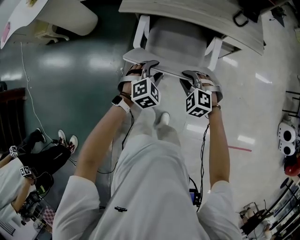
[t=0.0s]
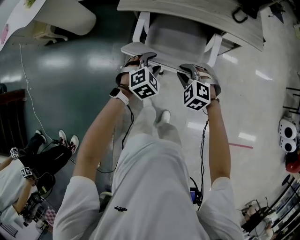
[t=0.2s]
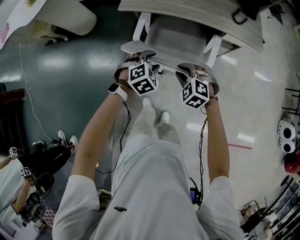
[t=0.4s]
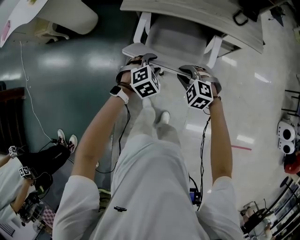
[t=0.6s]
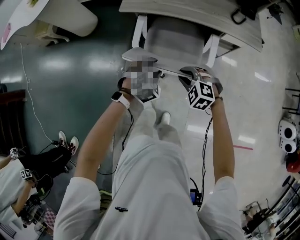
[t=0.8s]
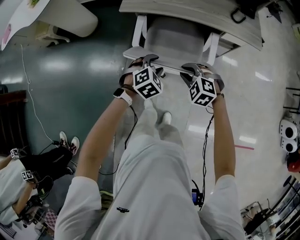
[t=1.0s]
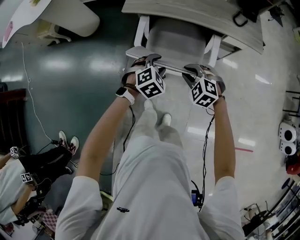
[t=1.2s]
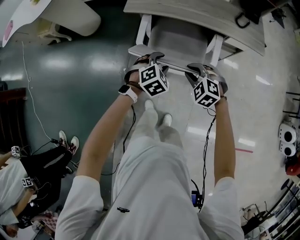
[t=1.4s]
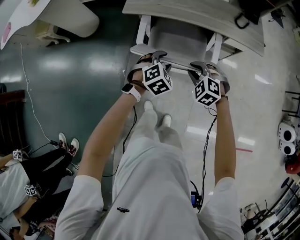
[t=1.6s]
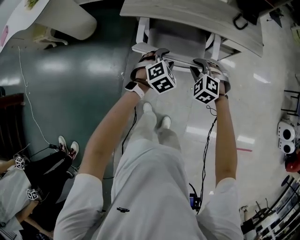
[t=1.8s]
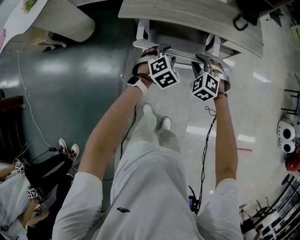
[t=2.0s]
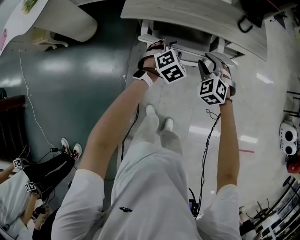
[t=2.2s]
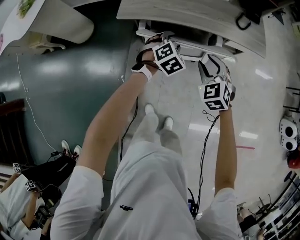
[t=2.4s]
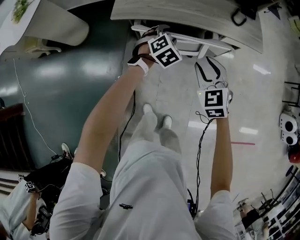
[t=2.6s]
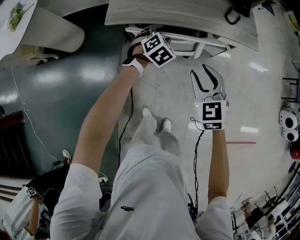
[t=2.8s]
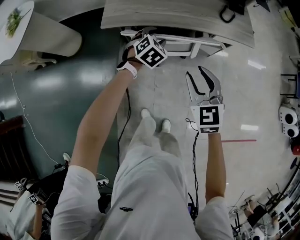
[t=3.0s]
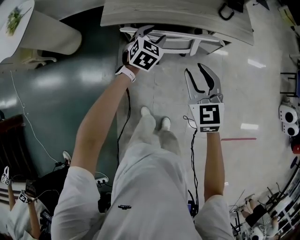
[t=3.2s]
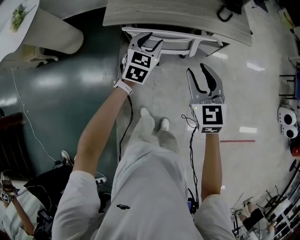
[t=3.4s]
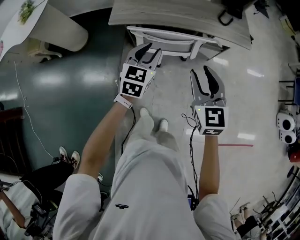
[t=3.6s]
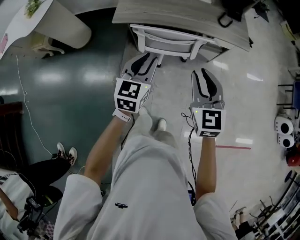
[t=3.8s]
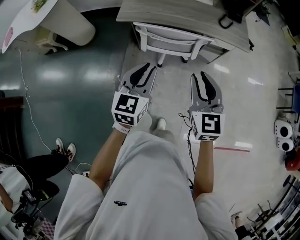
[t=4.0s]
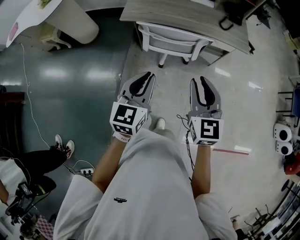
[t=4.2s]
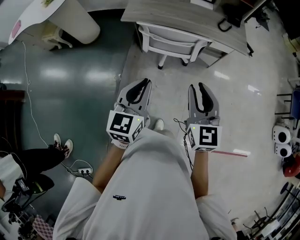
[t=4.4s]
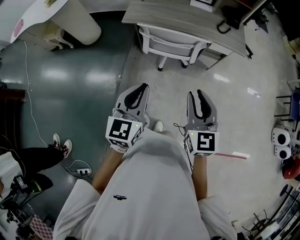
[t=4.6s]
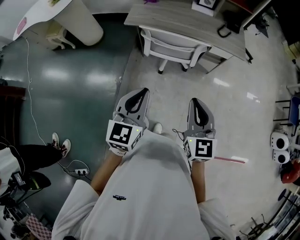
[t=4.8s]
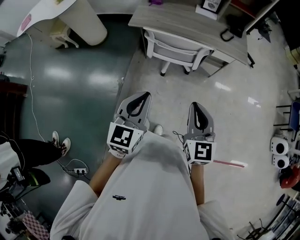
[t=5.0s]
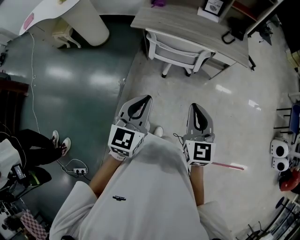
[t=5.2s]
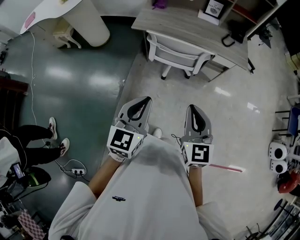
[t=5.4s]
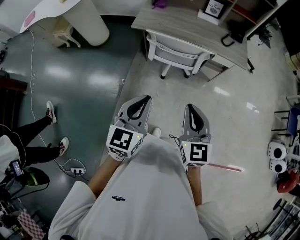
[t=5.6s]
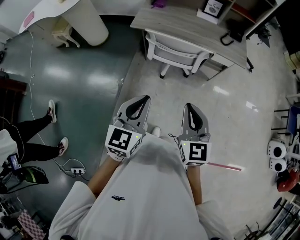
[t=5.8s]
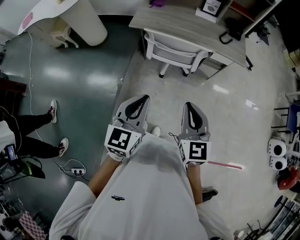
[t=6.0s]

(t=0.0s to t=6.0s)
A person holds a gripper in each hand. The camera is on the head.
t=0.0s - t=1.6s: The grippers make only small movements.
t=1.6s - t=3.0s: The left gripper moves forward, some 20 cm. Meanwhile the right gripper is displaced upward by roughly 15 cm, and turns by about 50 degrees.
t=3.0s - t=4.4s: The left gripper shifts roughly 40 cm backward and upward, tilts its fingers some 30 degrees upward, and closes up. The right gripper travels backward and upward by about 20 cm.
t=4.4s - t=6.0s: The two grippers go about 5 cm backward. The right gripper closes its fingers.

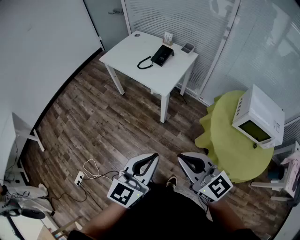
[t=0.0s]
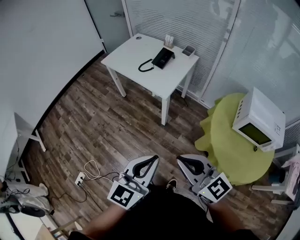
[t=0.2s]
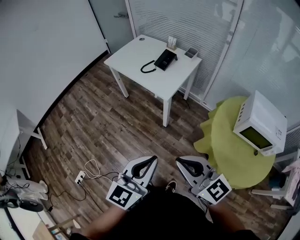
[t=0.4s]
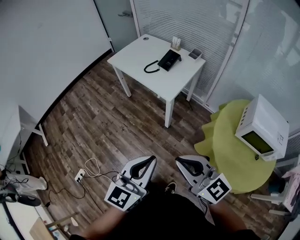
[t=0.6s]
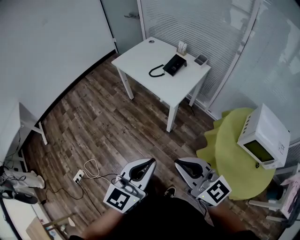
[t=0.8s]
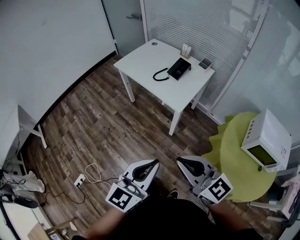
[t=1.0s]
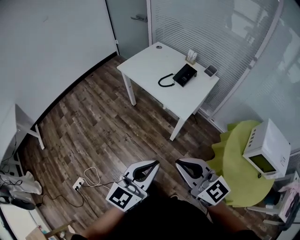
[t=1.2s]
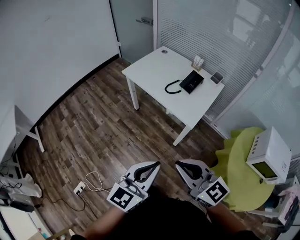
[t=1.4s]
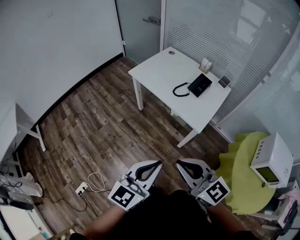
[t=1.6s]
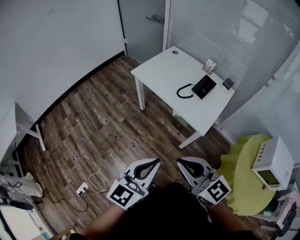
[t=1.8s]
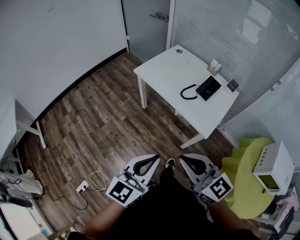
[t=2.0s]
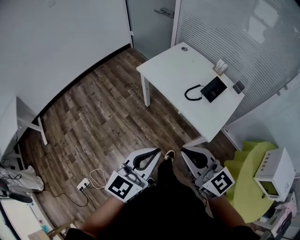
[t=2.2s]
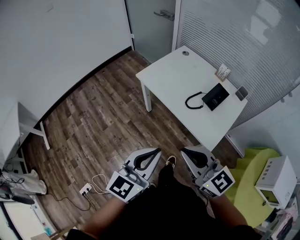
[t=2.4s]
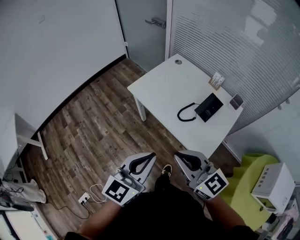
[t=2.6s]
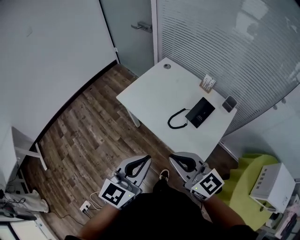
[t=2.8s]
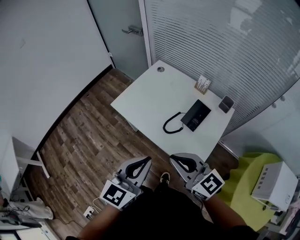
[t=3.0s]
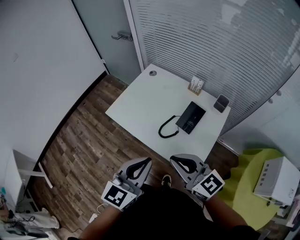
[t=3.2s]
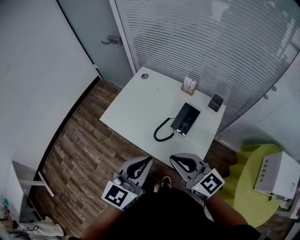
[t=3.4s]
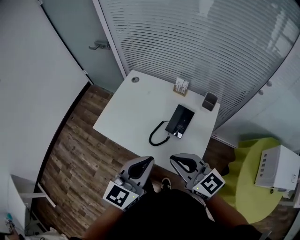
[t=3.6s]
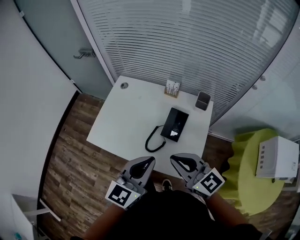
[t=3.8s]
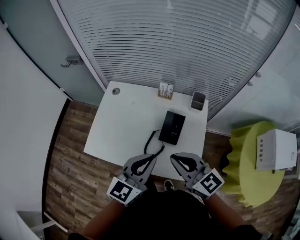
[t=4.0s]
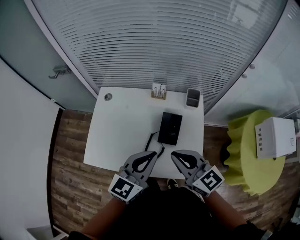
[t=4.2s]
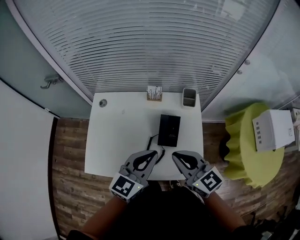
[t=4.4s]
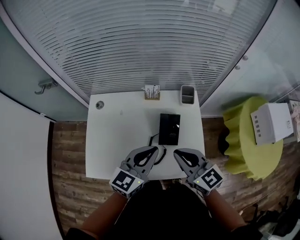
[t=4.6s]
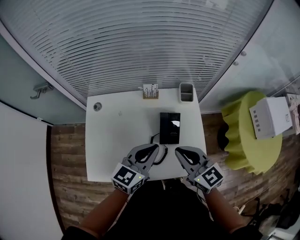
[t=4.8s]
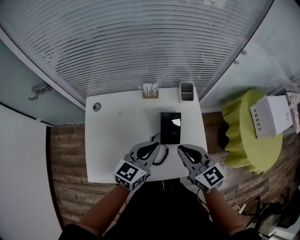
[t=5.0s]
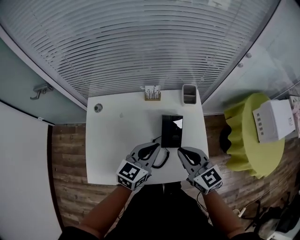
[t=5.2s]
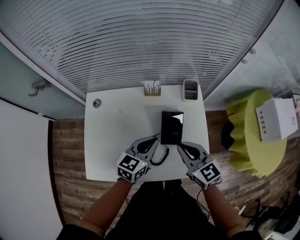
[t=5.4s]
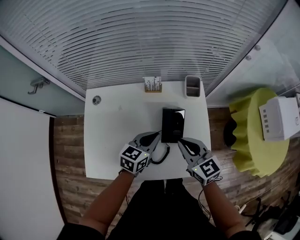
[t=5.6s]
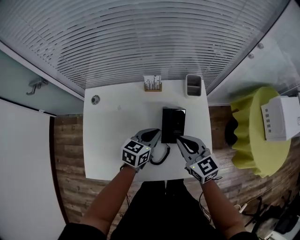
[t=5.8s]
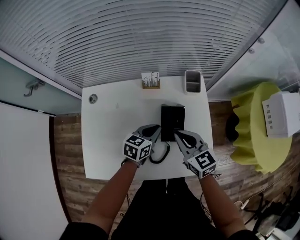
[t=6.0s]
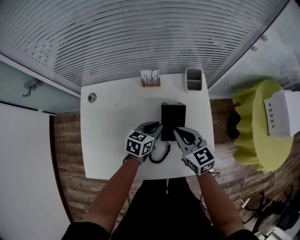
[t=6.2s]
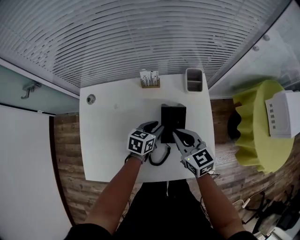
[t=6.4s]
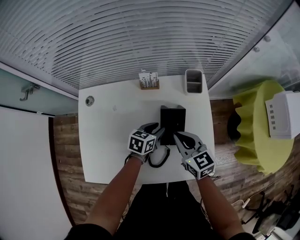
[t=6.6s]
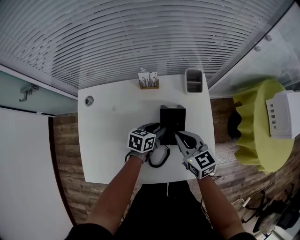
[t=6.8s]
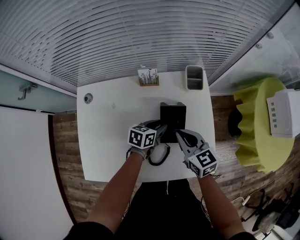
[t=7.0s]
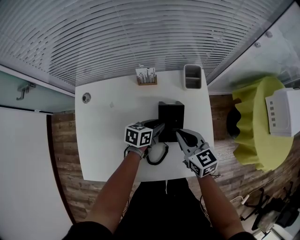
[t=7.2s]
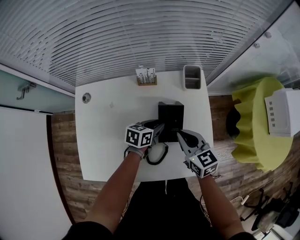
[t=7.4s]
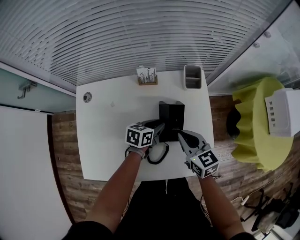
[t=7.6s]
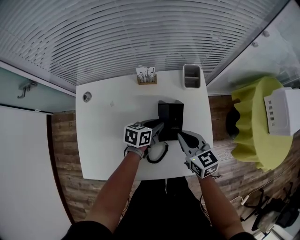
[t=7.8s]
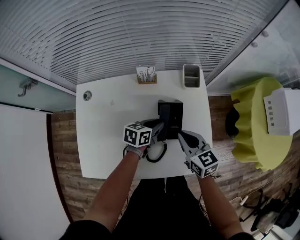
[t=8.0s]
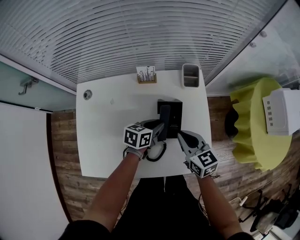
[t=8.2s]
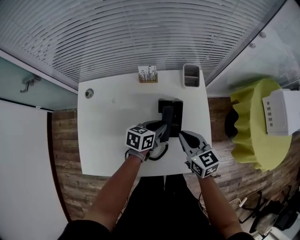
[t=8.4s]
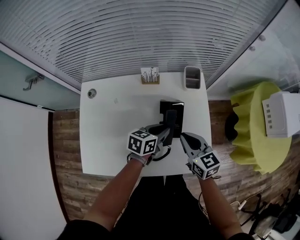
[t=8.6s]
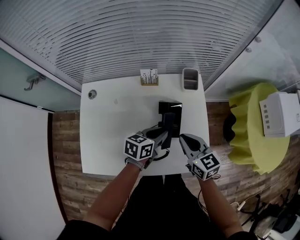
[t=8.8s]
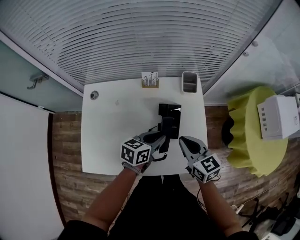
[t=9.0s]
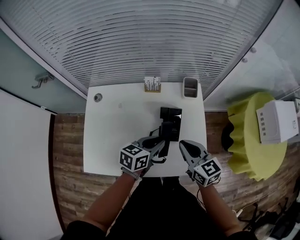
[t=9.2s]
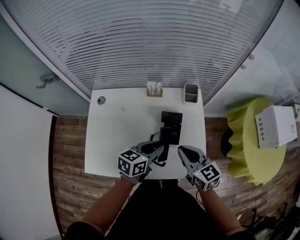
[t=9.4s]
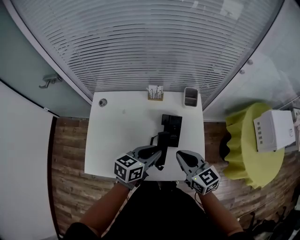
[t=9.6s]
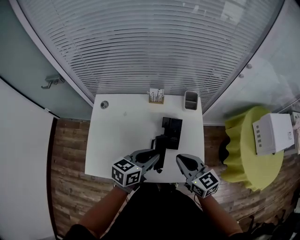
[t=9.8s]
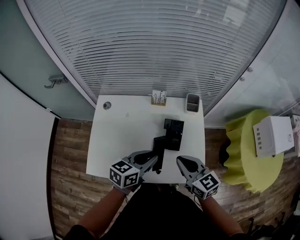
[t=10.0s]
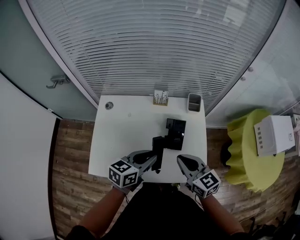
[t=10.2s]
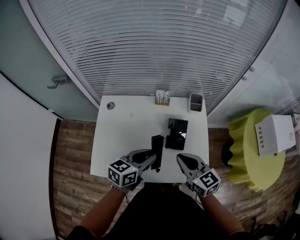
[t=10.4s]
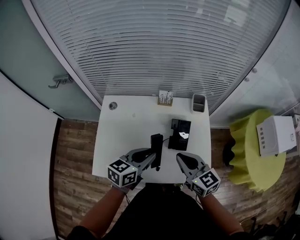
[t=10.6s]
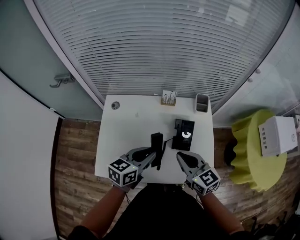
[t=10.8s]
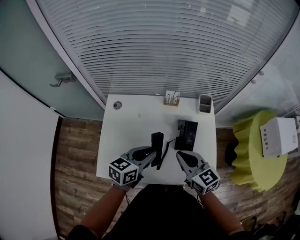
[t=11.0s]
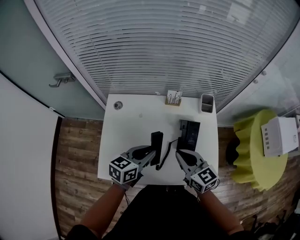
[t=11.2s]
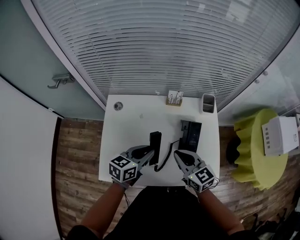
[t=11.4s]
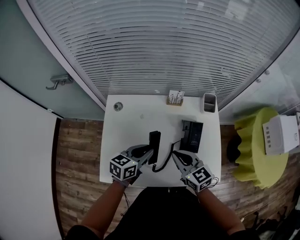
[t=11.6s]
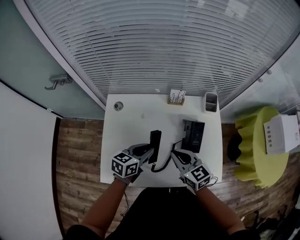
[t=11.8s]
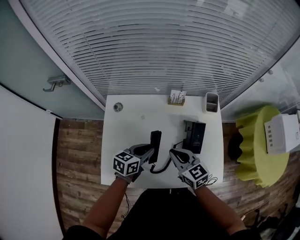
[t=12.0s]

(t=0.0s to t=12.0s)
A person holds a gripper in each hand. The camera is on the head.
t=0.0s - t=1.6s: The grippers both shift forward and to the left by roughly 30 cm.
t=1.6s - t=3.0s: Both grippers travel together forward, approximately 35 cm.
t=3.0s - t=4.4s: The left gripper changes place by some 25 cm, and turns by approximately 40 degrees, while the right gripper moves approximately 20 cm, and changes its angle by approximately 40 degrees.
t=4.4s - t=6.0s: Both grippers move downward and forward, some 20 cm. The left gripper rotates roughly 30 degrees.
t=6.0s - t=7.6s: The right gripper changes place by about 5 cm; the left gripper travels downward by some 5 cm, and opens up.
t=7.6s - t=9.0s: The left gripper goes roughly 15 cm upward and backward, while the right gripper travels upward by about 5 cm.
t=9.0s - t=10.4s: The left gripper is displaced upward, to the left and backward by approximately 15 cm, while the right gripper is displaced upward, backward and to the left by about 10 cm.
t=10.4s - t=12.0s: The right gripper is displaced to the left, downward and forward by roughly 15 cm, while the left gripper shifts about 20 cm downward, to the left and forward.

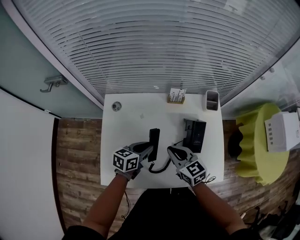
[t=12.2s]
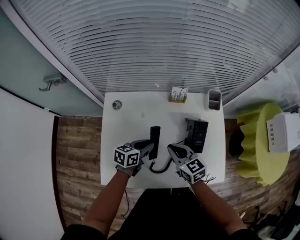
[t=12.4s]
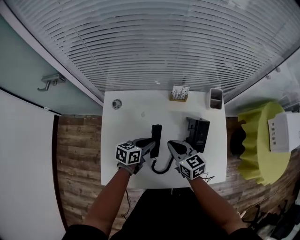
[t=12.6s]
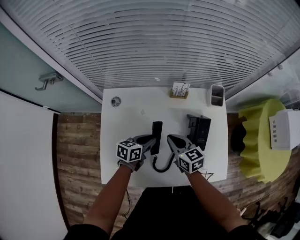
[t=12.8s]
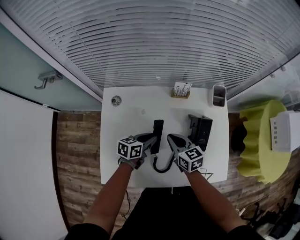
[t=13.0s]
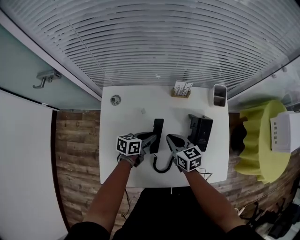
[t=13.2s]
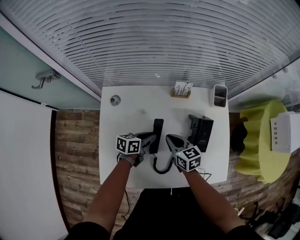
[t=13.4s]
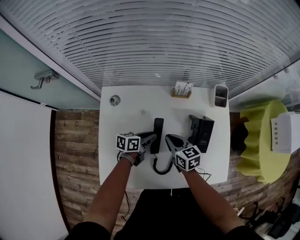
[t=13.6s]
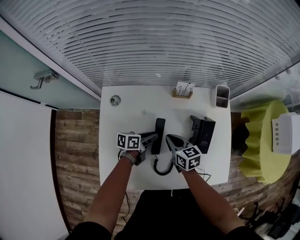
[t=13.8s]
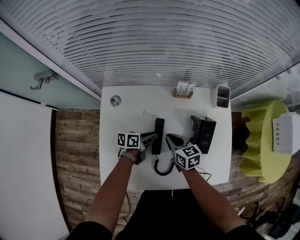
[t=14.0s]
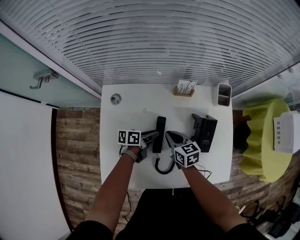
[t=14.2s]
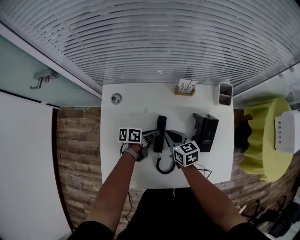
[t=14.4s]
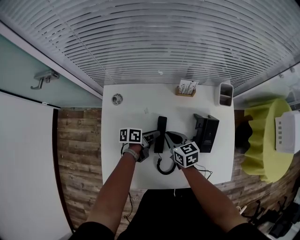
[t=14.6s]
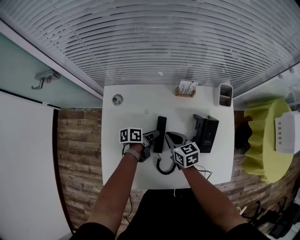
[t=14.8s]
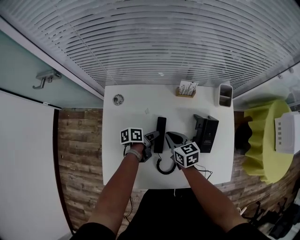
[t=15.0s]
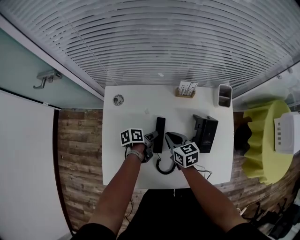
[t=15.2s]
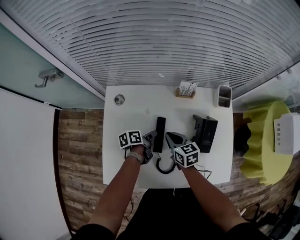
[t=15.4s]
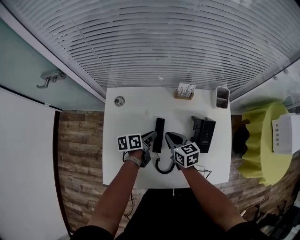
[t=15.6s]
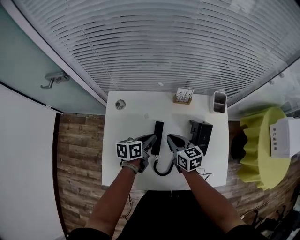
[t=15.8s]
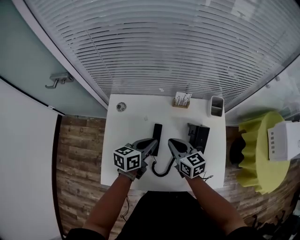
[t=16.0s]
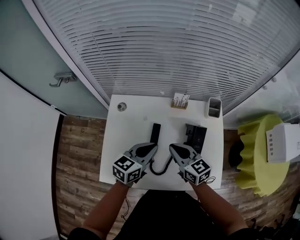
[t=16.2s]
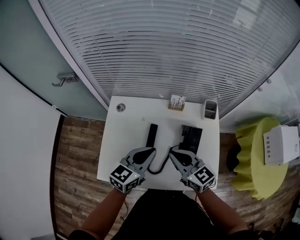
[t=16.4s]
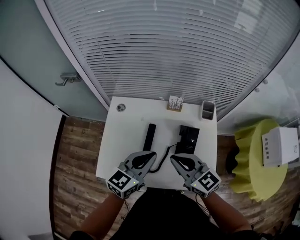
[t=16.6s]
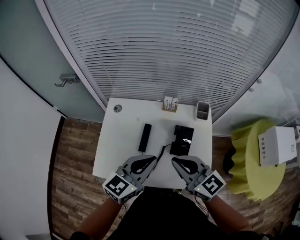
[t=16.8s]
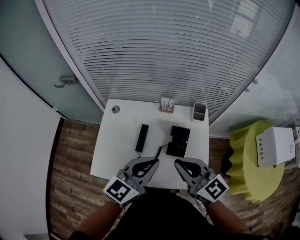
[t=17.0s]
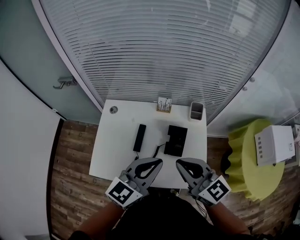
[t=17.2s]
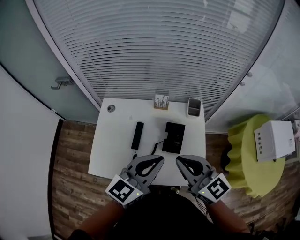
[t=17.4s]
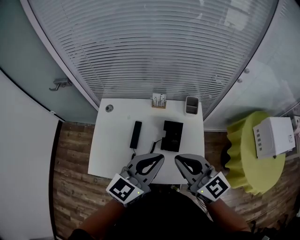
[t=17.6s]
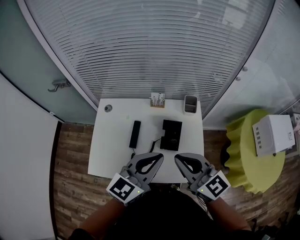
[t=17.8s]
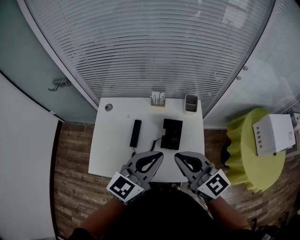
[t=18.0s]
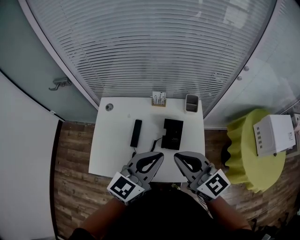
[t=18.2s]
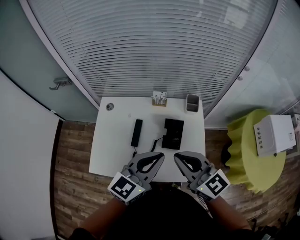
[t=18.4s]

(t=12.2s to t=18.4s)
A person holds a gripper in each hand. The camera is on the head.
t=12.2s - t=13.8s: The two grippers go roughly 15 cm downward and forward. The left gripper turns by about 20 degrees.
t=13.8s - t=15.4s: The left gripper turns by roughly 30 degrees.
t=15.4s - t=16.8s: The two grippers go some 35 cm upward and backward. The left gripper rolls clockwise, seen from behind, by roughly 70 degrees, while the right gripper swivels approximately 40 degrees.
t=16.8s - t=18.4s: Both grippers travel together to the right, some 5 cm.
